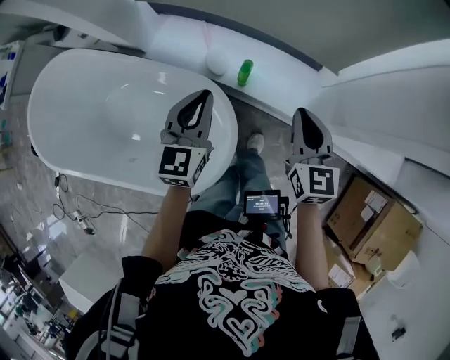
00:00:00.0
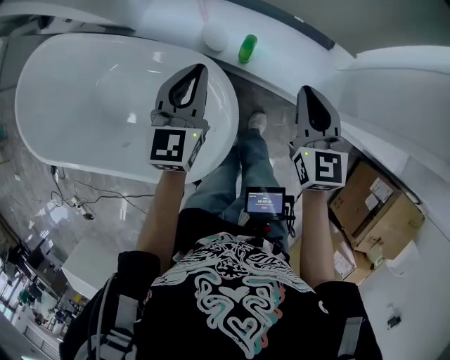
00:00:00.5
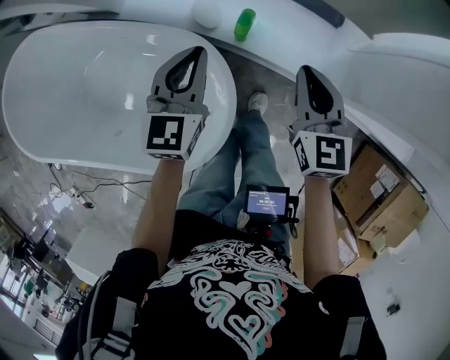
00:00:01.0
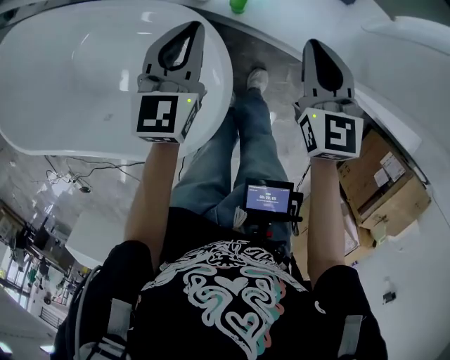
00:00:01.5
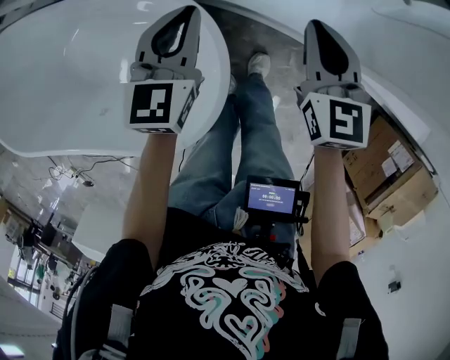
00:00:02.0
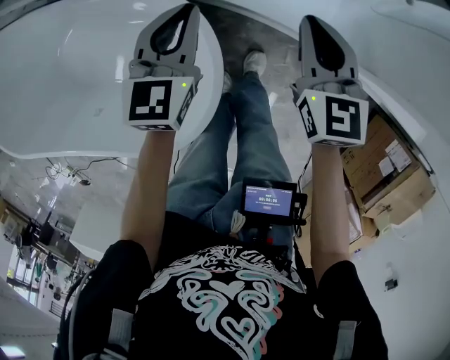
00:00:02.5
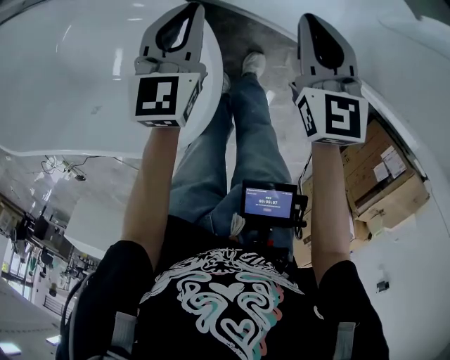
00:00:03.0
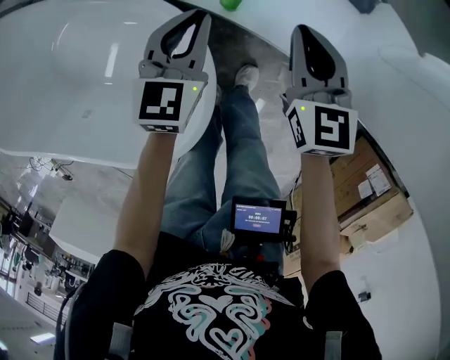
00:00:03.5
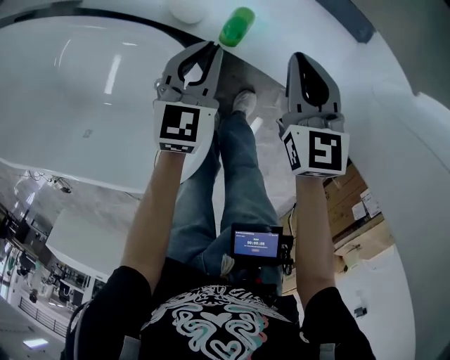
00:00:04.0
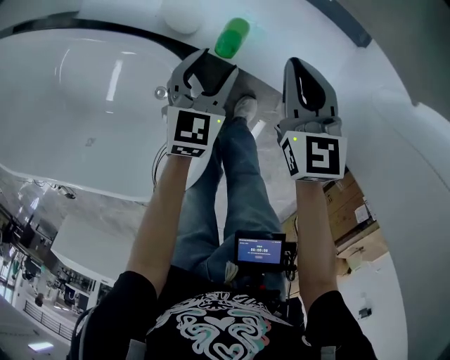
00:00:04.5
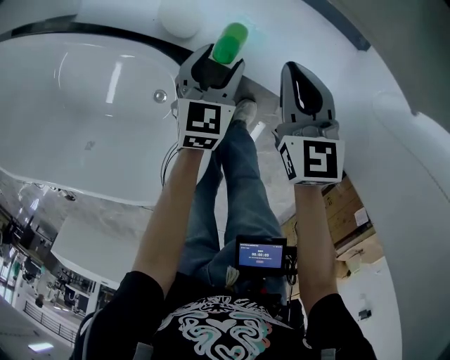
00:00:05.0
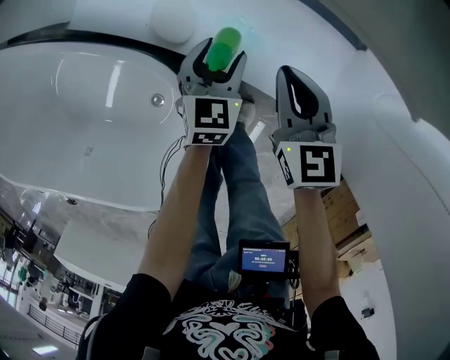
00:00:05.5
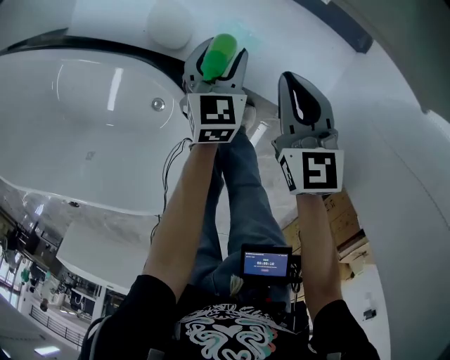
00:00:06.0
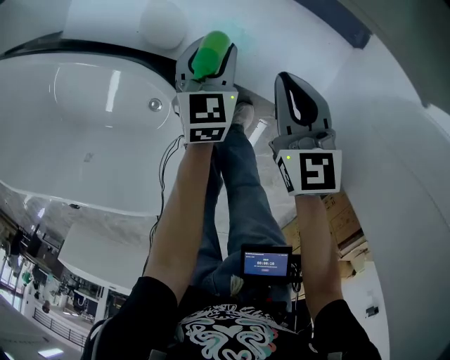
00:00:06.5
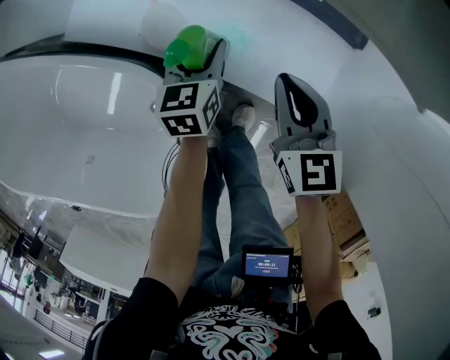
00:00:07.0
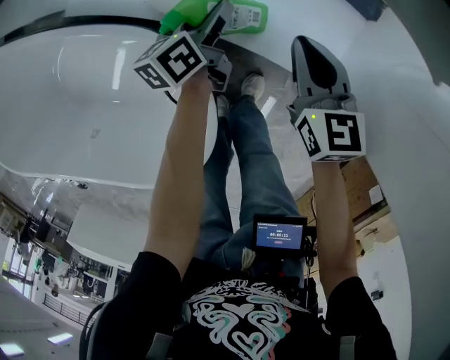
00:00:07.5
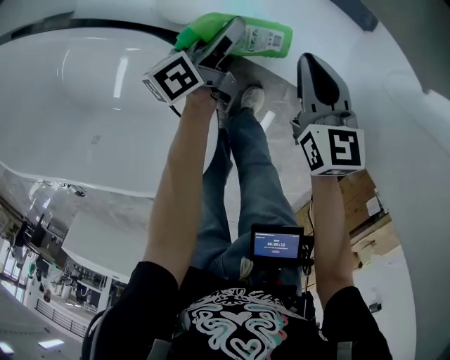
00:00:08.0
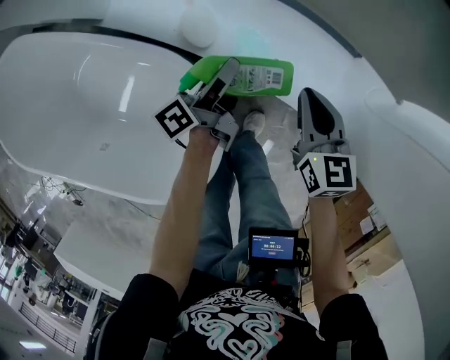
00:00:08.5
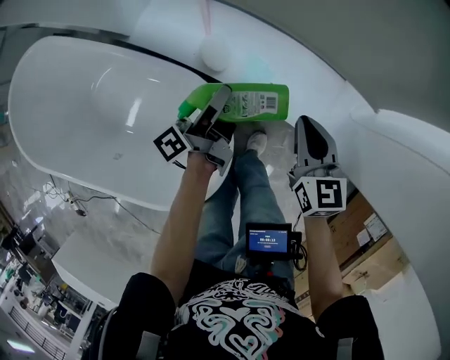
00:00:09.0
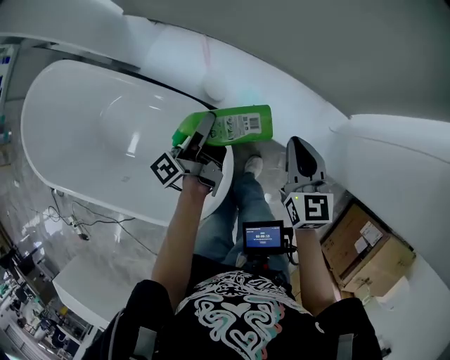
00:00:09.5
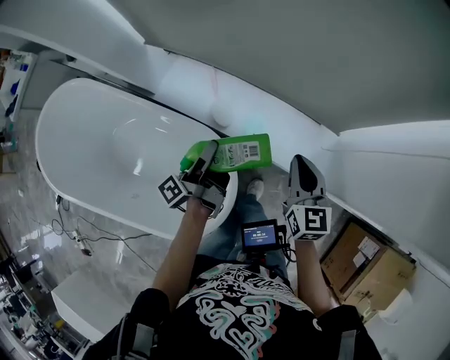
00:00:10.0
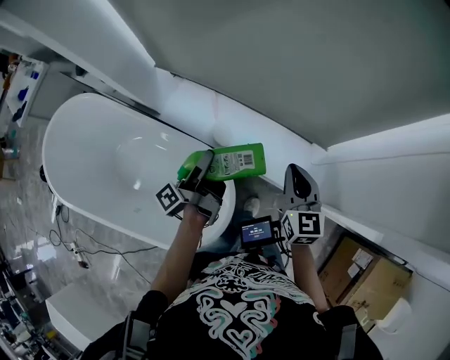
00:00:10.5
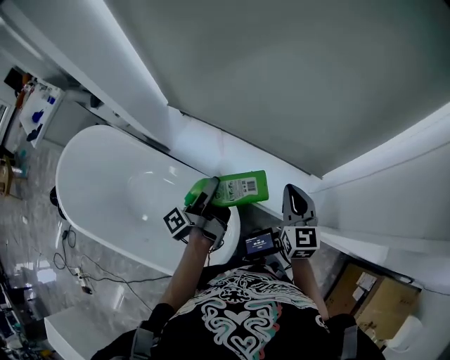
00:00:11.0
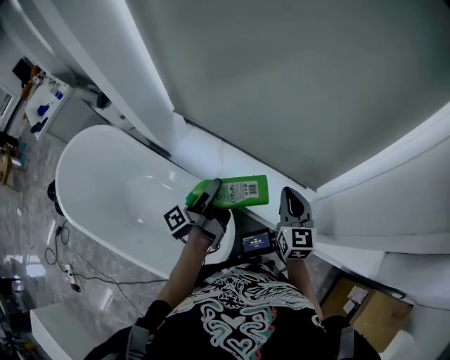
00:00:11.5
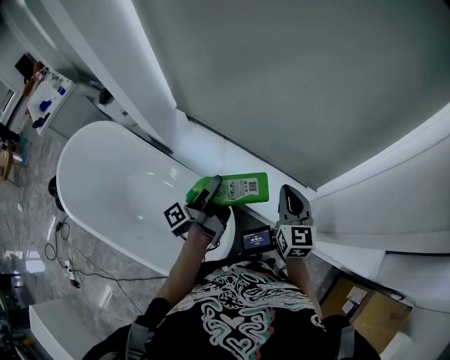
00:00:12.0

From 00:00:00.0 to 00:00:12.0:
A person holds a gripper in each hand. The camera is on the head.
From 00:00:00.0 to 00:00:02.0: The two grippers go some 20 cm downward.
From 00:00:02.0 to 00:00:04.0: The left gripper shifts roughly 15 cm downward and forward. The right gripper shifts roughly 10 cm forward and downward.
From 00:00:04.0 to 00:00:06.0: The left gripper heads downward, forward and to the right, covering approximately 10 cm, and opens.
From 00:00:06.0 to 00:00:08.0: The left gripper rotates around the line of its fingers by about 60 degrees, counterclockwise from behind.
From 00:00:08.0 to 00:00:10.0: The grippers both shift upward by roughly 30 cm. The left gripper rotates some 40 degrees.
From 00:00:10.0 to 00:00:12.0: The grippers both shift upward by approximately 15 cm.

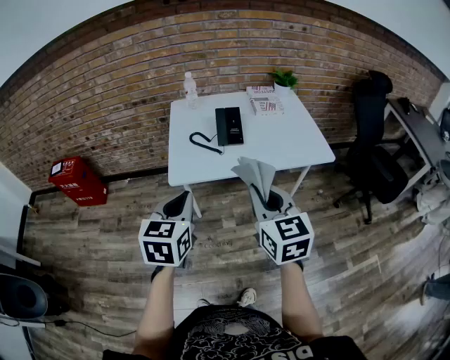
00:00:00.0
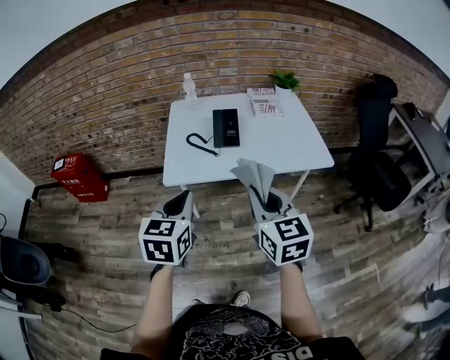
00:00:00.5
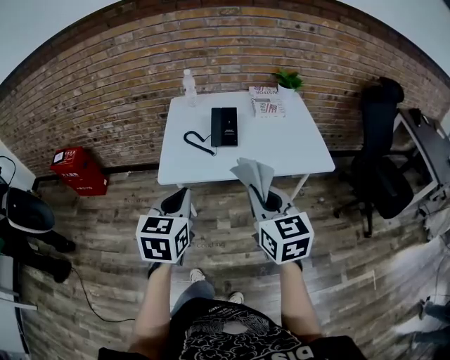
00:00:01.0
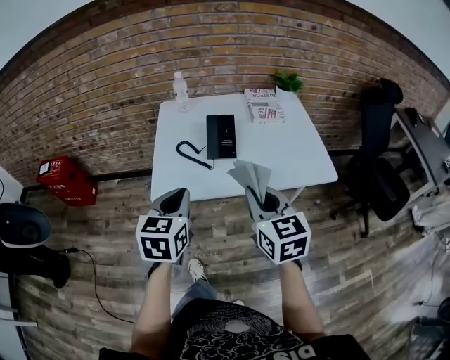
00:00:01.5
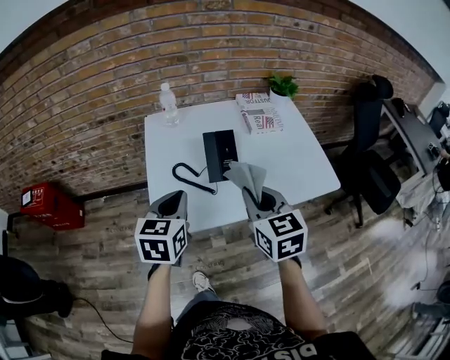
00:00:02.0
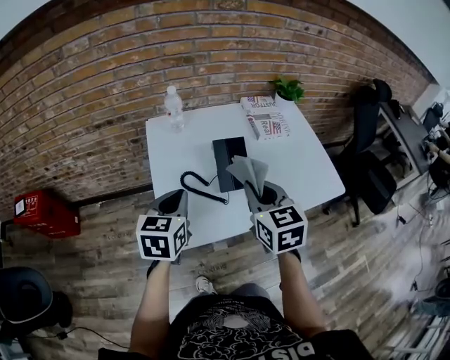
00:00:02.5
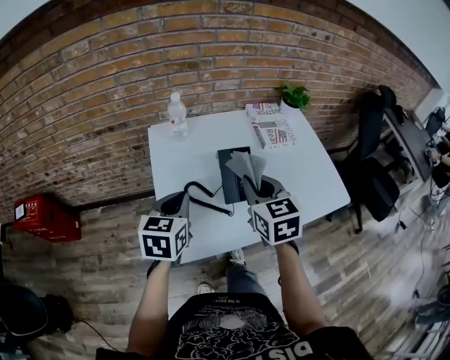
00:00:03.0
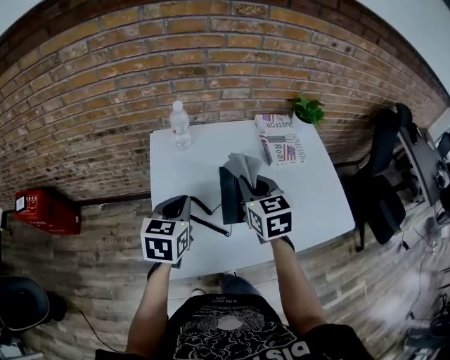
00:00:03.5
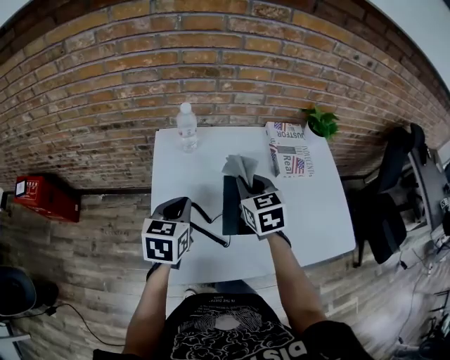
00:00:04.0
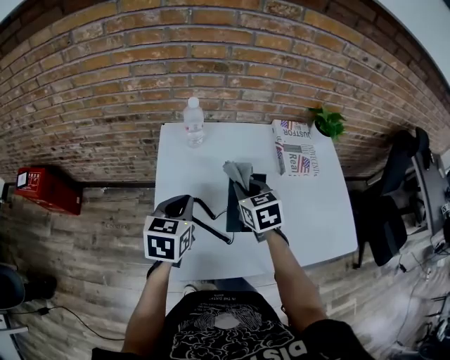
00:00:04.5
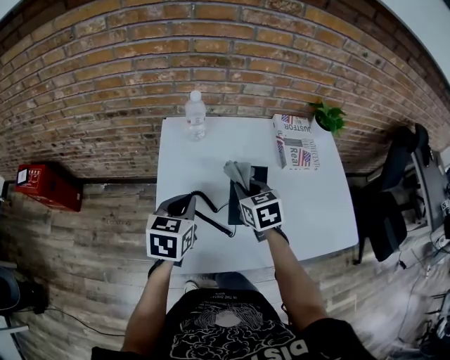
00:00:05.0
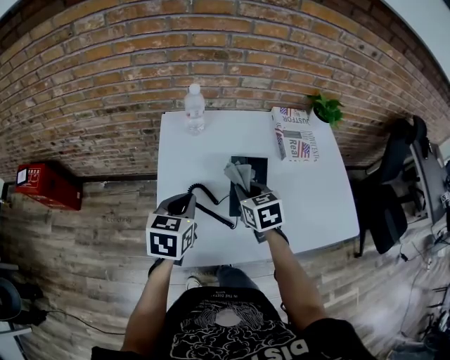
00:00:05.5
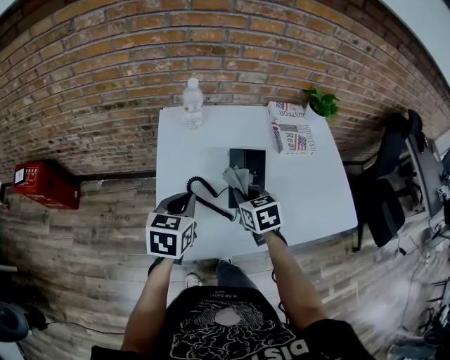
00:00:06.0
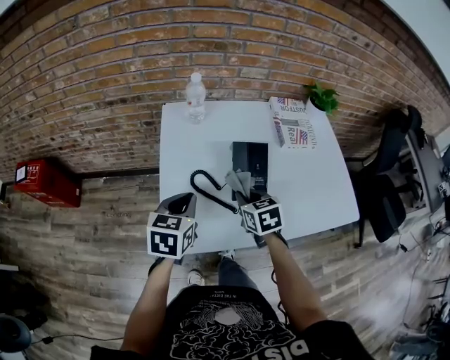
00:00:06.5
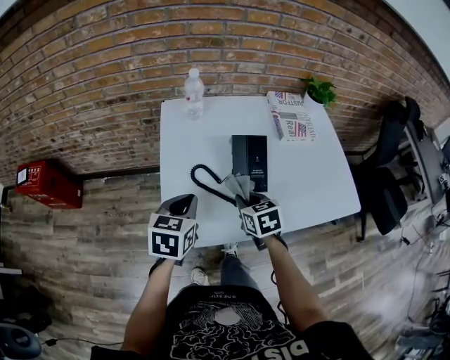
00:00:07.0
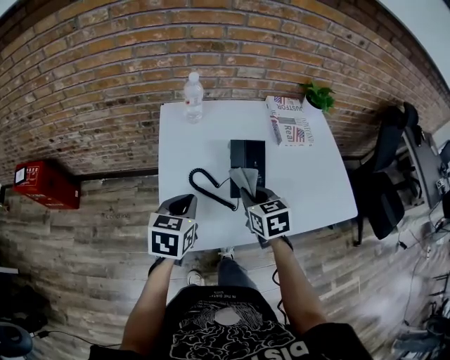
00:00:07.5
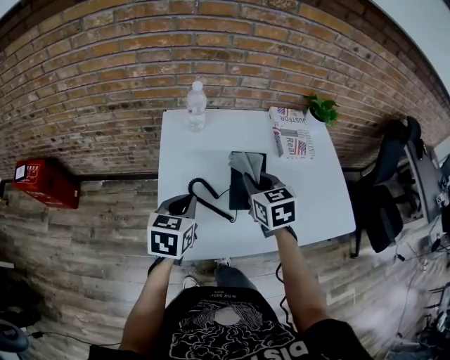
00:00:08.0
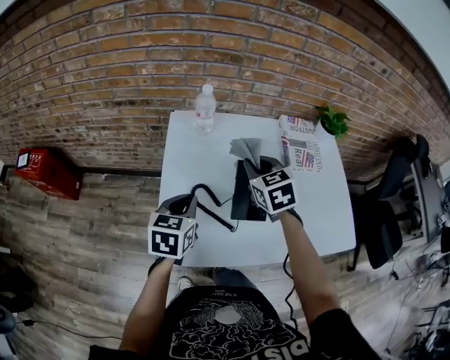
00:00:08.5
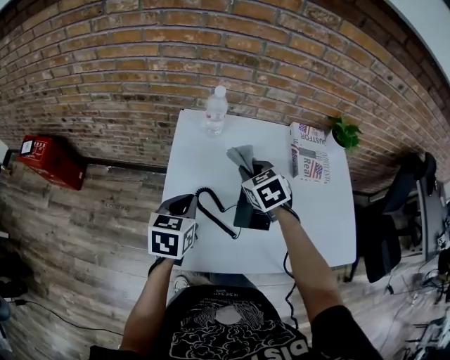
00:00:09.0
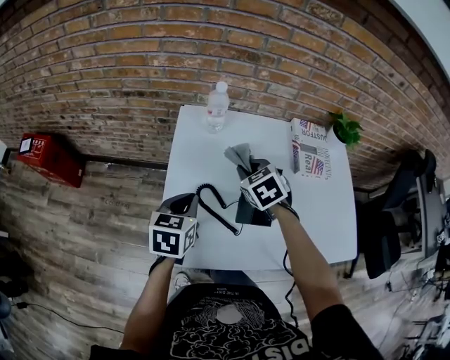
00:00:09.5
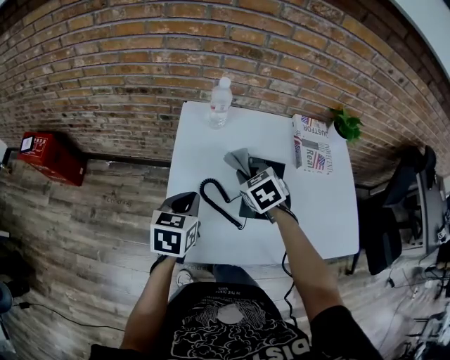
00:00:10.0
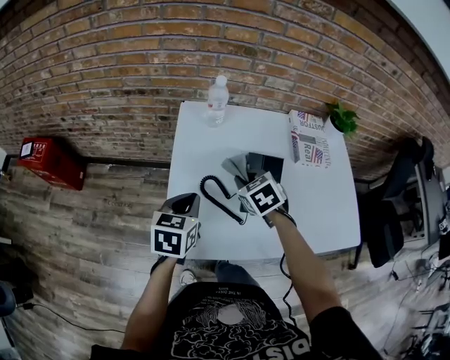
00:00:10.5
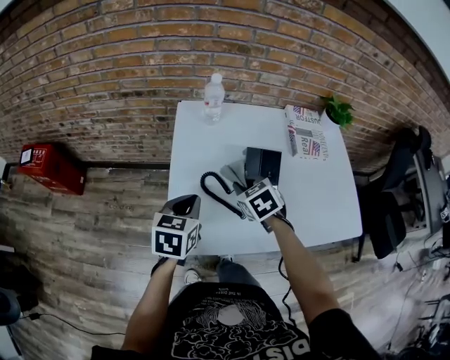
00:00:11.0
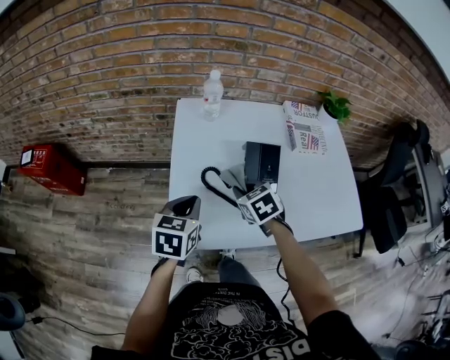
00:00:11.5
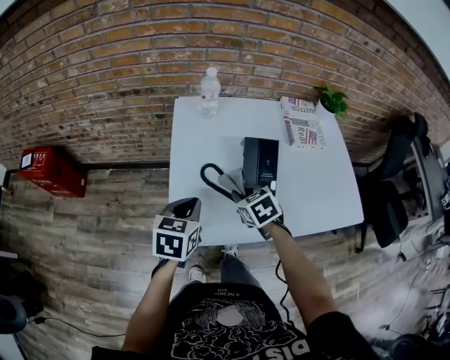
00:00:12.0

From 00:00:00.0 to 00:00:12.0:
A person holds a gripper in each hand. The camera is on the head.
From 00:00:00.0 to 00:00:02.0: The grippers both shift forward by some 25 cm.
From 00:00:02.0 to 00:00:04.0: Both grippers move forward, some 25 cm.
From 00:00:04.0 to 00:00:06.0: The right gripper goes approximately 15 cm backward and downward. The left gripper moves backward, approximately 5 cm.
From 00:00:06.0 to 00:00:08.0: The right gripper goes roughly 10 cm upward.
From 00:00:08.0 to 00:00:10.0: The right gripper travels downward, to the left and forward by roughly 10 cm, and swivels roughly 30 degrees.
From 00:00:10.0 to 00:00:12.0: The left gripper goes approximately 5 cm backward; the right gripper goes some 10 cm backward.

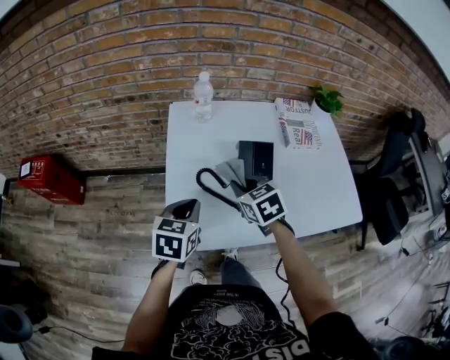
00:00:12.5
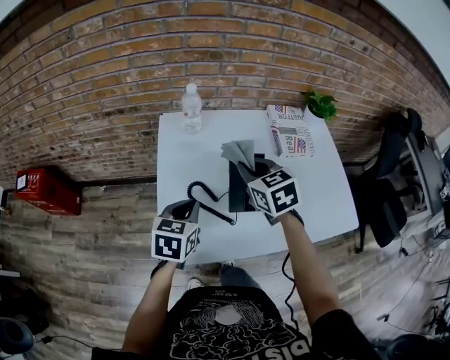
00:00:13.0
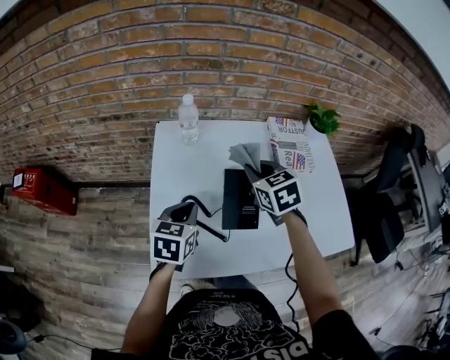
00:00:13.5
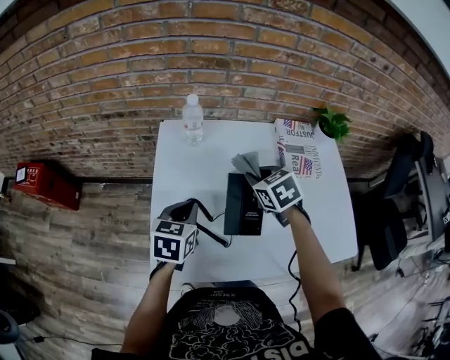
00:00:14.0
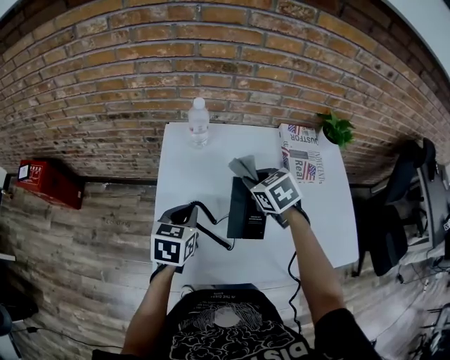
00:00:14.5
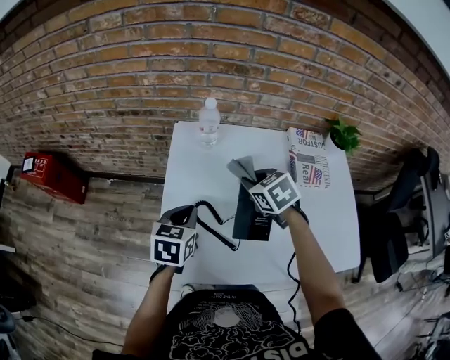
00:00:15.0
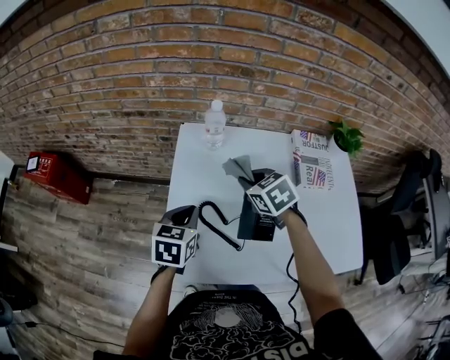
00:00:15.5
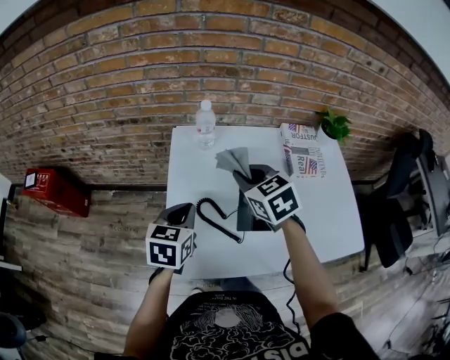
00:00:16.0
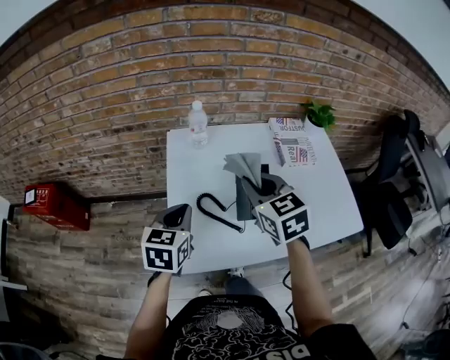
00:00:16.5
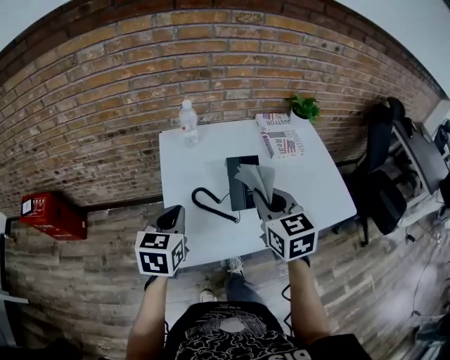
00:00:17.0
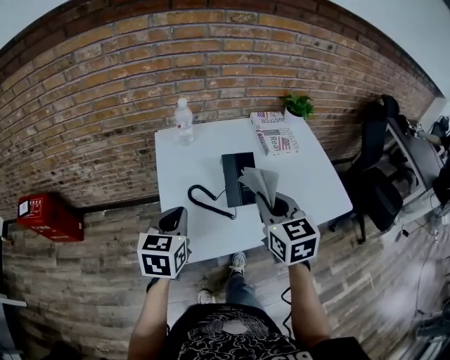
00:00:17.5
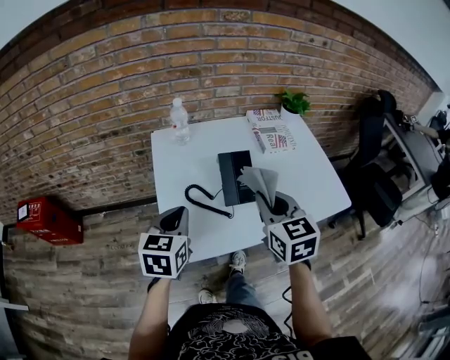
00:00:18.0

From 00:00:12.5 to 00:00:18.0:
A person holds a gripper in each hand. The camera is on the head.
From 00:00:12.5 to 00:00:14.5: The right gripper is displaced forward and to the right by some 15 cm. Meanwhile the left gripper travels forward by roughly 10 cm.
From 00:00:14.5 to 00:00:16.0: The right gripper is displaced upward and to the left by roughly 10 cm. Meanwhile the left gripper changes place by roughly 5 cm.
From 00:00:16.0 to 00:00:18.0: The left gripper is displaced backward by some 10 cm. The right gripper heads backward and to the right, covering approximately 20 cm, and rotates about 30 degrees.
